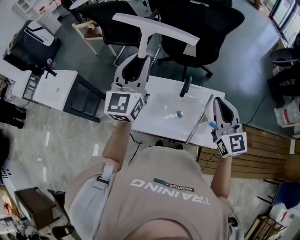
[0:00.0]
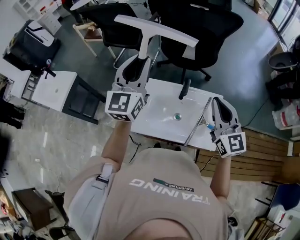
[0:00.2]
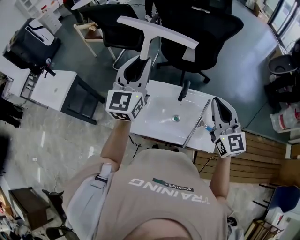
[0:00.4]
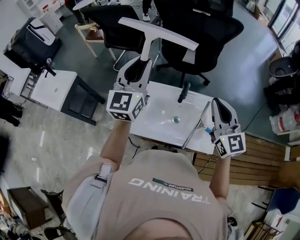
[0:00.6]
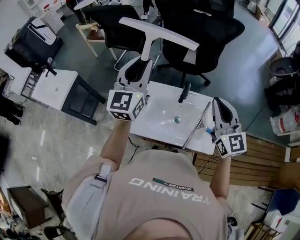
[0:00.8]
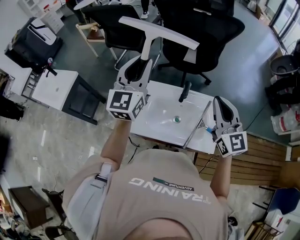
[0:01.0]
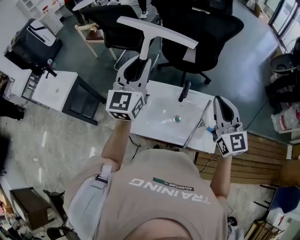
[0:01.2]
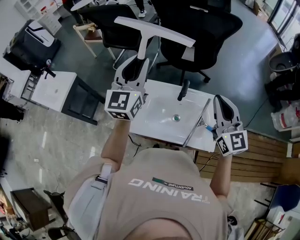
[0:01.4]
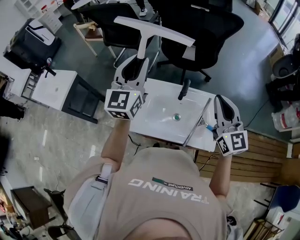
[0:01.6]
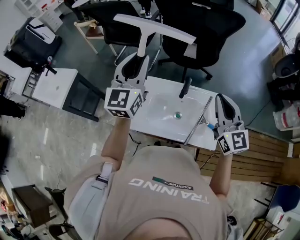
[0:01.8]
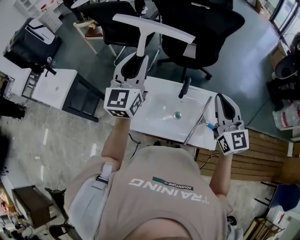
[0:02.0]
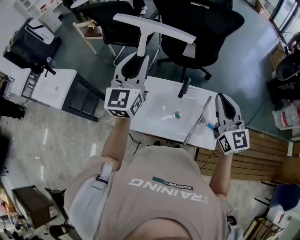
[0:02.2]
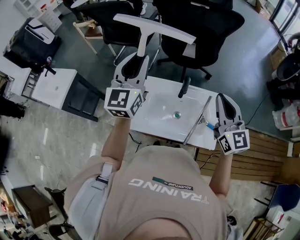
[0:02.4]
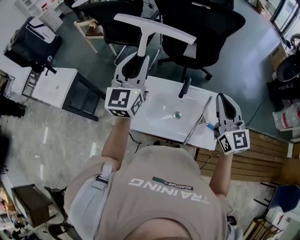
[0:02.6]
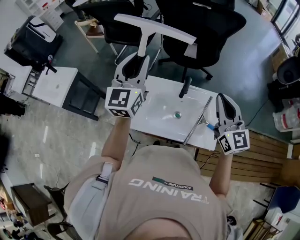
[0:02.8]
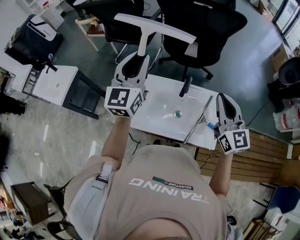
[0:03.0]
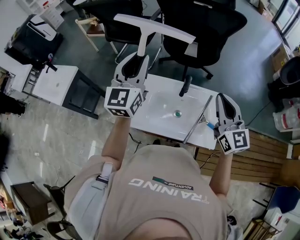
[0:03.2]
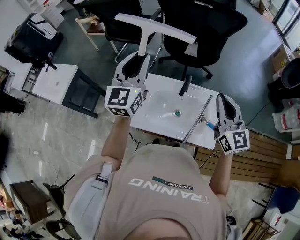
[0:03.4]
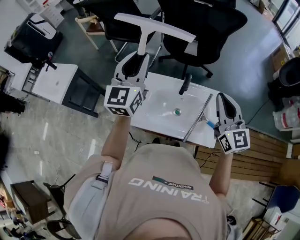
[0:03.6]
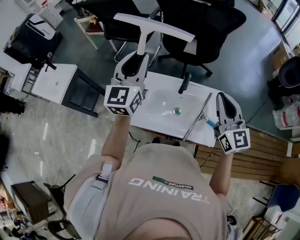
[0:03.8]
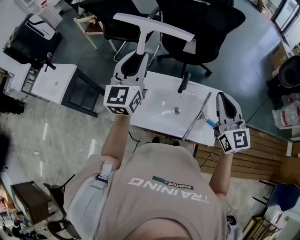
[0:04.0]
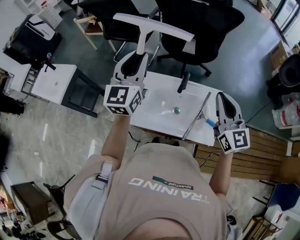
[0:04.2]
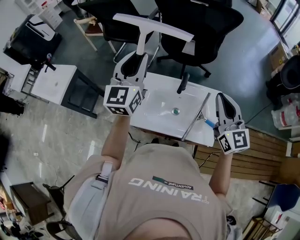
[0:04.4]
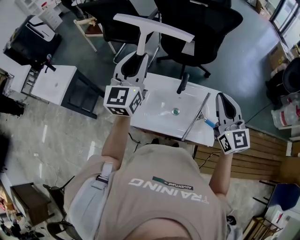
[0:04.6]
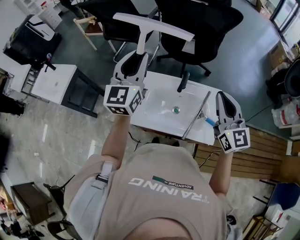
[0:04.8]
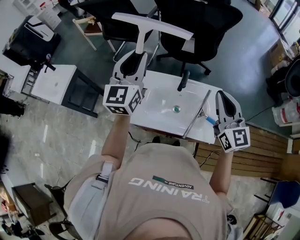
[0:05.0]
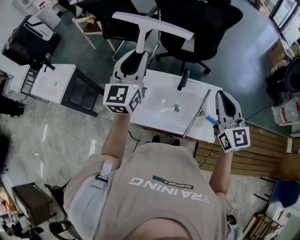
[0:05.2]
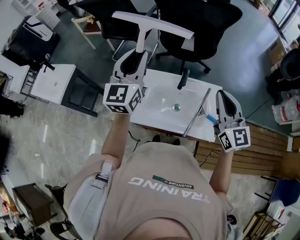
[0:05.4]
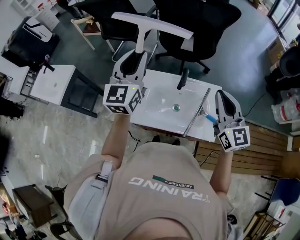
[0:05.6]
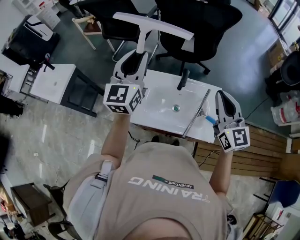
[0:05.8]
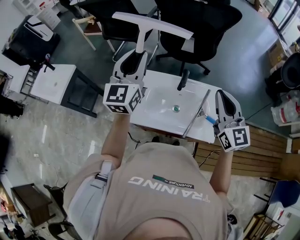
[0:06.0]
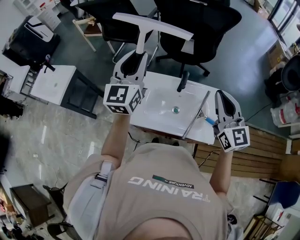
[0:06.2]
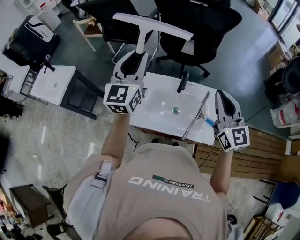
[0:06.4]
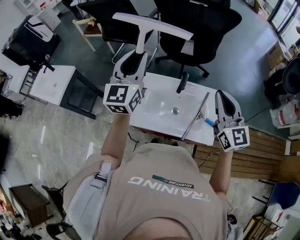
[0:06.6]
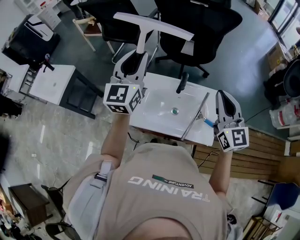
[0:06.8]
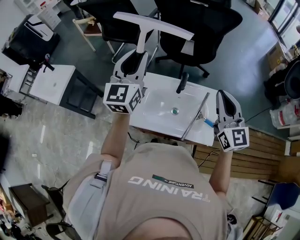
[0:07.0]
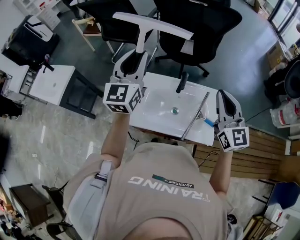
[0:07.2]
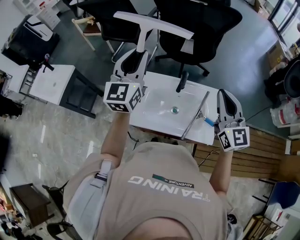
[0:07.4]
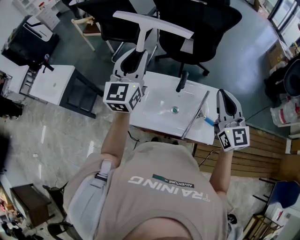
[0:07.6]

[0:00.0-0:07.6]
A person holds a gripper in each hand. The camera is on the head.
0:00.0 to 0:01.6: The grippers move only a little.
0:01.6 to 0:03.0: Both grippers stay put.
0:03.0 to 0:04.6: The grippers stay close to where they were, moving slightly.
0:04.6 to 0:06.0: Neither gripper changes place.
0:06.0 to 0:07.6: The grippers make only small movements.

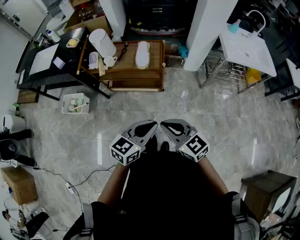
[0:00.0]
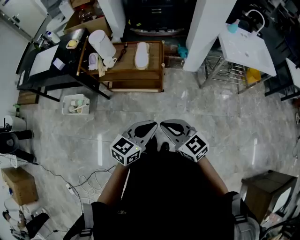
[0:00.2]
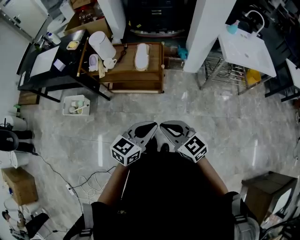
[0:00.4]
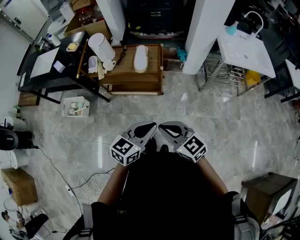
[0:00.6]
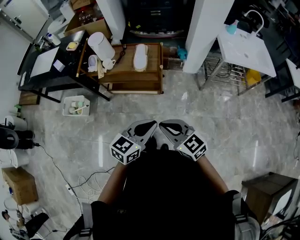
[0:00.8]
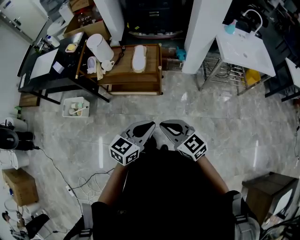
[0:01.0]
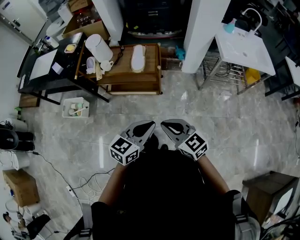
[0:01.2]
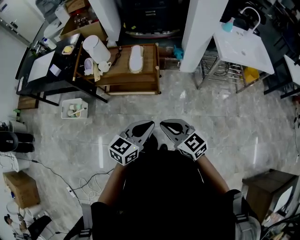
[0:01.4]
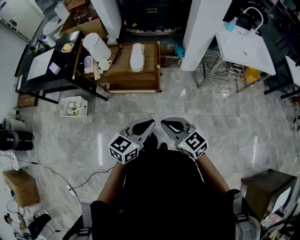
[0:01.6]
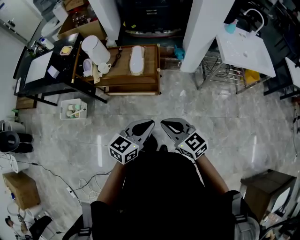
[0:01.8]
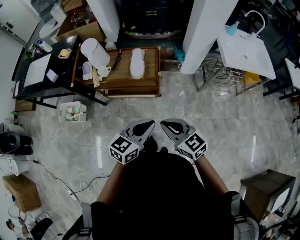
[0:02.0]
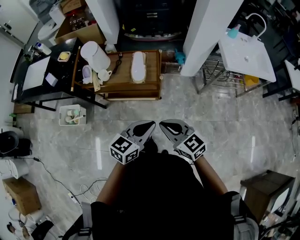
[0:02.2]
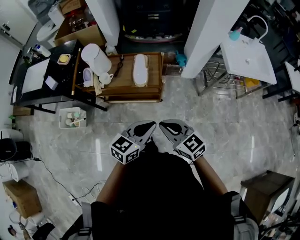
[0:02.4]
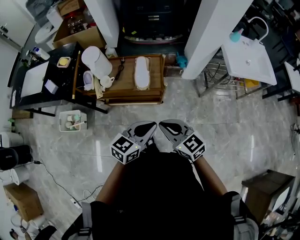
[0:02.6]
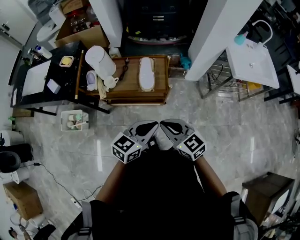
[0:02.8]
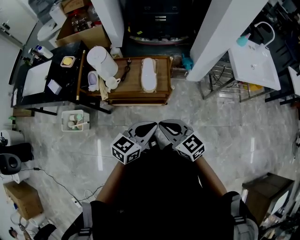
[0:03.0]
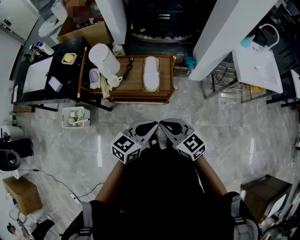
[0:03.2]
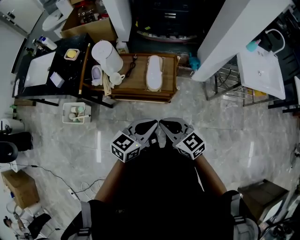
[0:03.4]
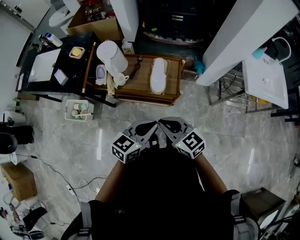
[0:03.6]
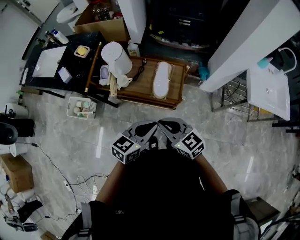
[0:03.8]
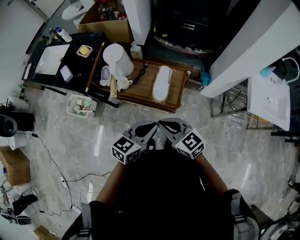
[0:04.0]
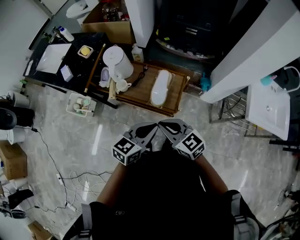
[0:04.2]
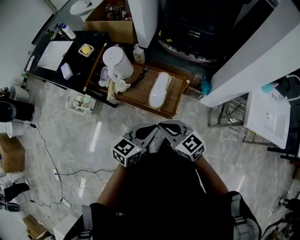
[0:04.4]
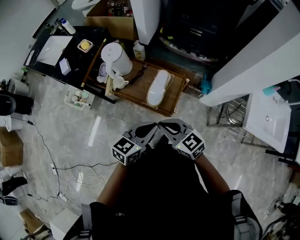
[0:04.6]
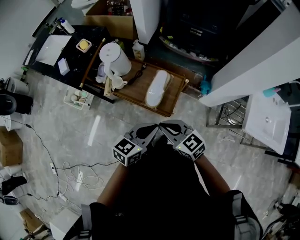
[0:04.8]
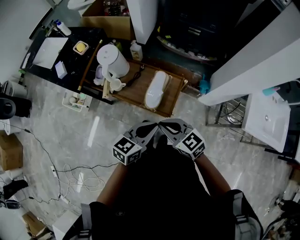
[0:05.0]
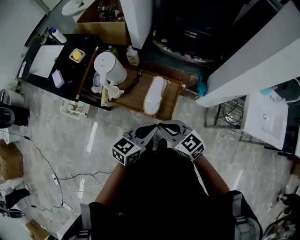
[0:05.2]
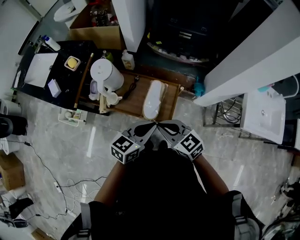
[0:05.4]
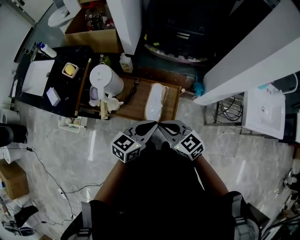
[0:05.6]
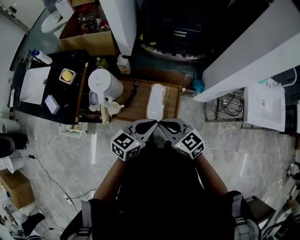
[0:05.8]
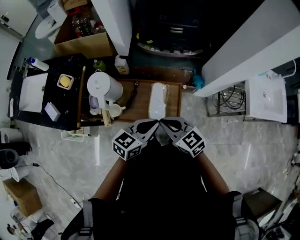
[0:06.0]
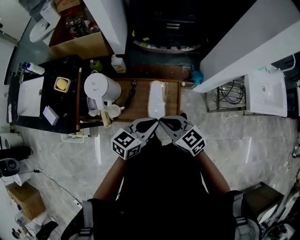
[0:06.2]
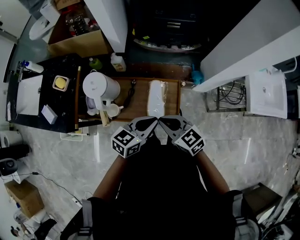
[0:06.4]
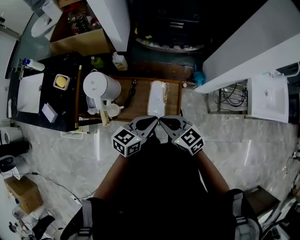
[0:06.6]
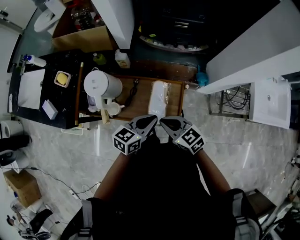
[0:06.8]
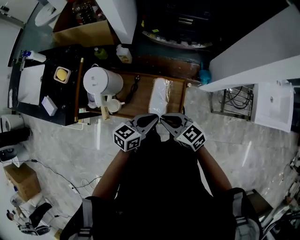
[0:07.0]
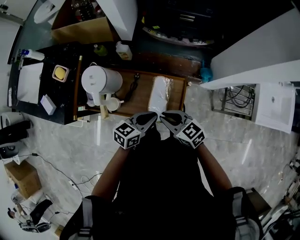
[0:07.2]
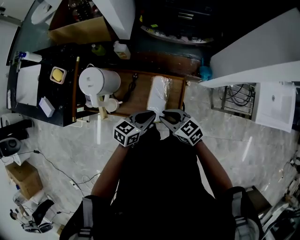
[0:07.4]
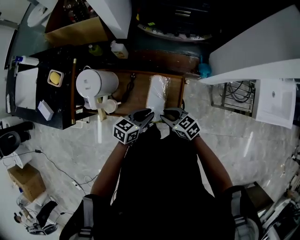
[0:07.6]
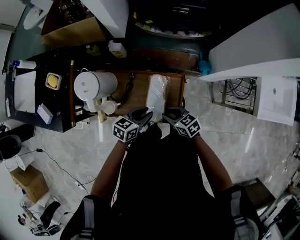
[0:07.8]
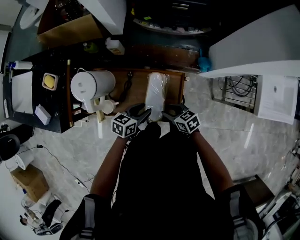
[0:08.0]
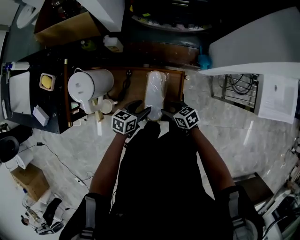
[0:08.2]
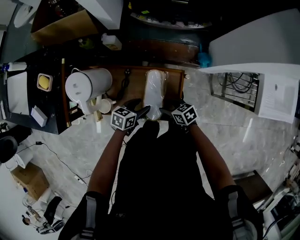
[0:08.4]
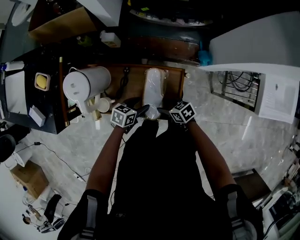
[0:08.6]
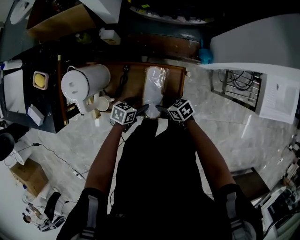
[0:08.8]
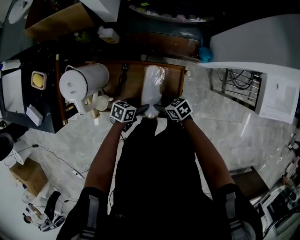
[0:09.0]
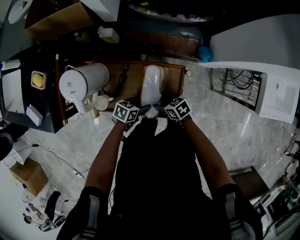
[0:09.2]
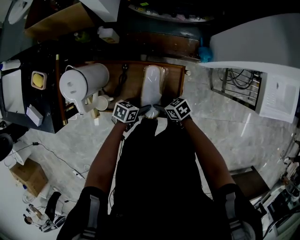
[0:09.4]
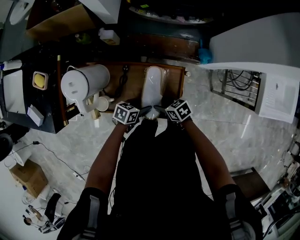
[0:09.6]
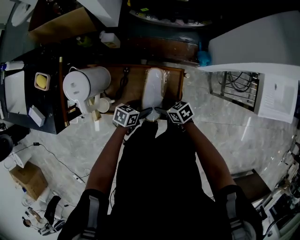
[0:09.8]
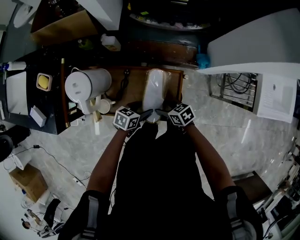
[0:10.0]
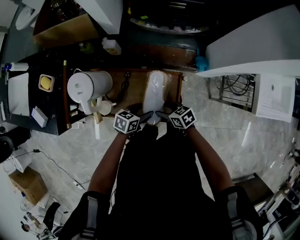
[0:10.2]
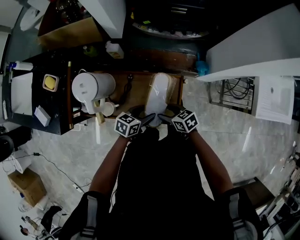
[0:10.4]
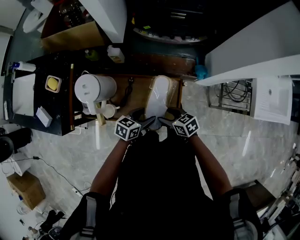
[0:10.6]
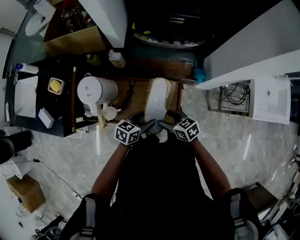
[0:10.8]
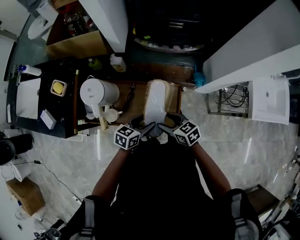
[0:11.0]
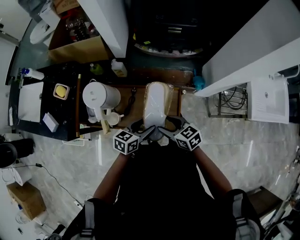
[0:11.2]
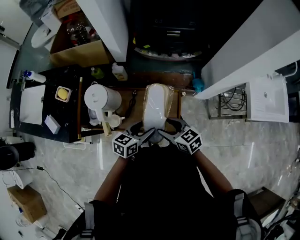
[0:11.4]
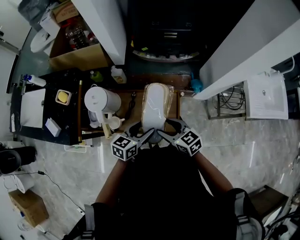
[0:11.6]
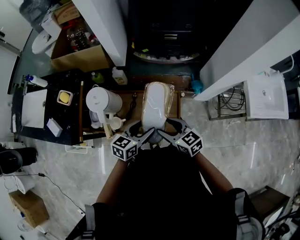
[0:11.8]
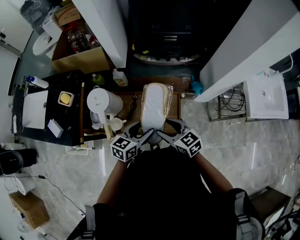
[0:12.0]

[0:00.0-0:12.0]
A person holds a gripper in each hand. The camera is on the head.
0:00.0 to 0:01.6: The right gripper ends up roughly 5 cm from where it was.
0:01.6 to 0:03.0: The two grippers go roughly 20 cm forward and to the left.
0:03.0 to 0:04.4: The left gripper shifts roughly 10 cm forward and to the right, and swivels approximately 20 degrees. The right gripper travels forward by approximately 10 cm, and turns by roughly 20 degrees.
0:04.4 to 0:06.0: Both grippers move forward, some 15 cm.
0:06.0 to 0:07.6: The left gripper is displaced downward and forward by some 15 cm. Meanwhile the right gripper moves downward, roughly 15 cm, and turns by approximately 20 degrees.
0:07.6 to 0:09.0: The grippers both shift downward by roughly 15 cm. The right gripper changes its angle by about 20 degrees, and opens, while the left gripper swivels some 20 degrees, and opens its fingers.
0:09.0 to 0:10.4: Both grippers move upward, about 10 cm.
0:10.4 to 0:12.0: Both grippers move upward, about 15 cm. The right gripper swivels about 30 degrees.

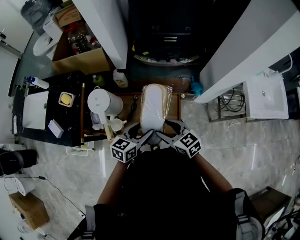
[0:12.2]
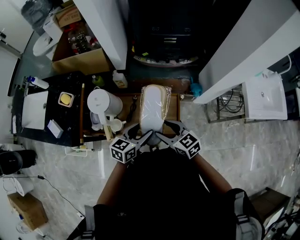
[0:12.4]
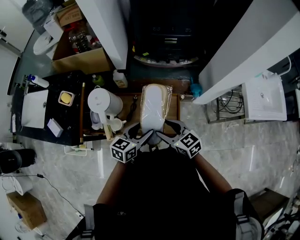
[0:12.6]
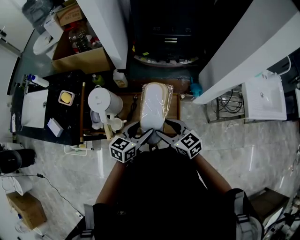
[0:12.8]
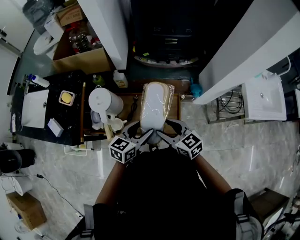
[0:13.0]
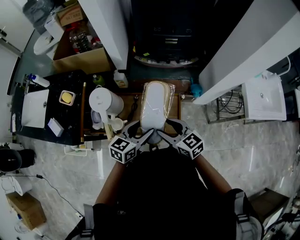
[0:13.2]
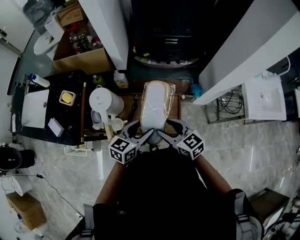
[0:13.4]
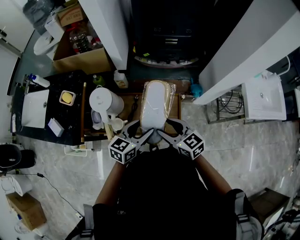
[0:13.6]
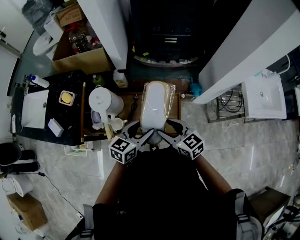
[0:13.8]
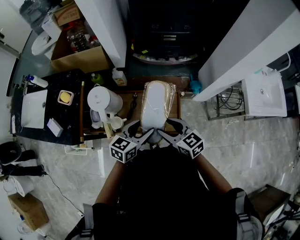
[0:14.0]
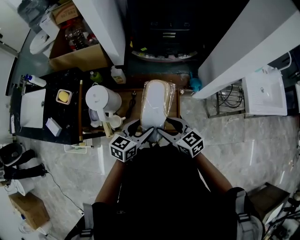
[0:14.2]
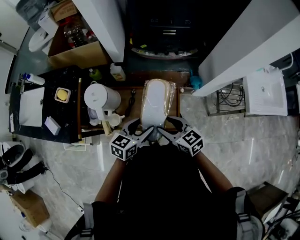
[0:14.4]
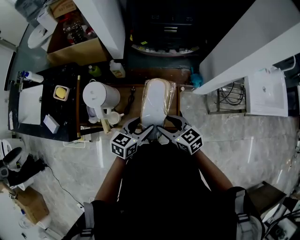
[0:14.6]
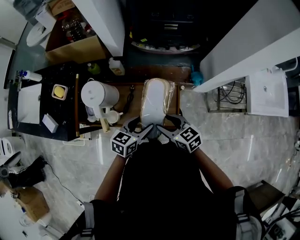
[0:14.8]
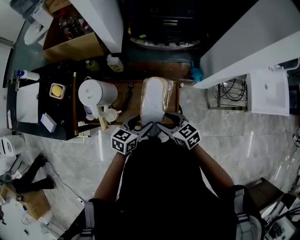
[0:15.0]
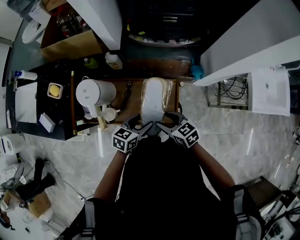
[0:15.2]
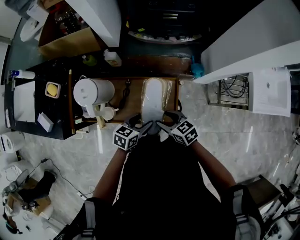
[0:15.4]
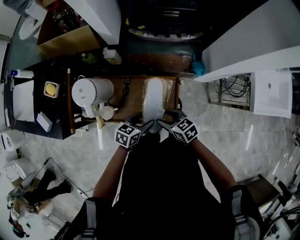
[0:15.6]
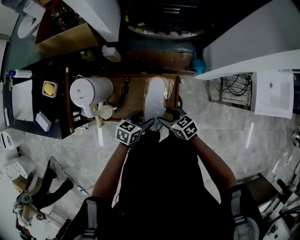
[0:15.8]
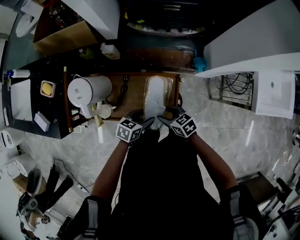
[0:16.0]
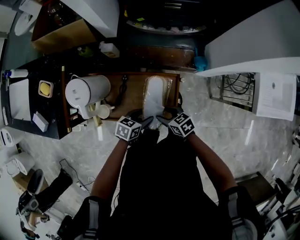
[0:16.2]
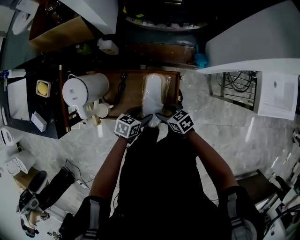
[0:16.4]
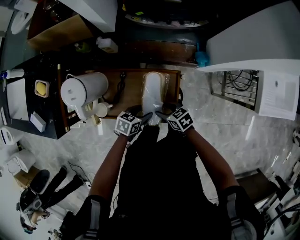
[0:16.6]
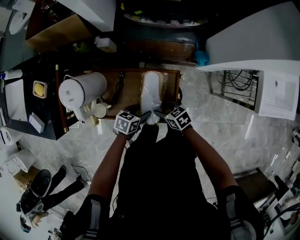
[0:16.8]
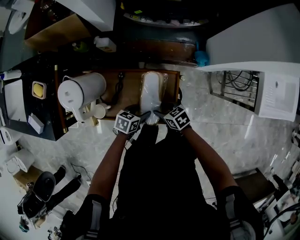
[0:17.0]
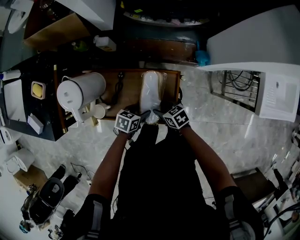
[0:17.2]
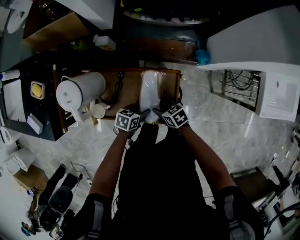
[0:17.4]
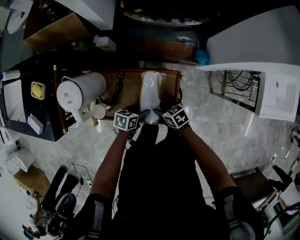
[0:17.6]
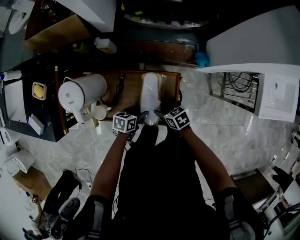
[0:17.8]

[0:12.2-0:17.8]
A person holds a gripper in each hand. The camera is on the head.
0:12.2 to 0:13.6: The grippers make only small movements.
0:13.6 to 0:15.0: The grippers both shift downward by some 10 cm.
0:15.0 to 0:16.4: Both grippers travel together downward, approximately 15 cm.
0:16.4 to 0:17.8: The left gripper moves downward, approximately 5 cm.
